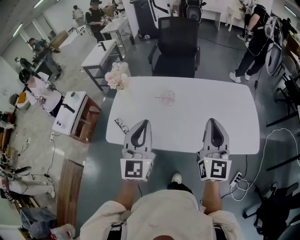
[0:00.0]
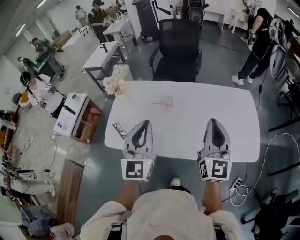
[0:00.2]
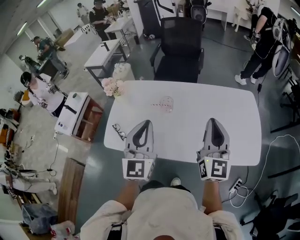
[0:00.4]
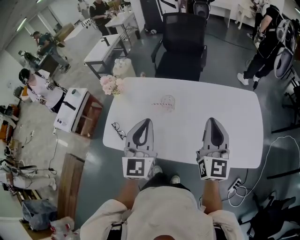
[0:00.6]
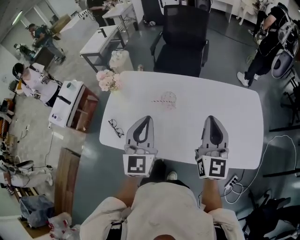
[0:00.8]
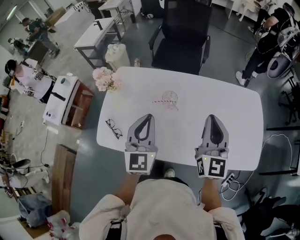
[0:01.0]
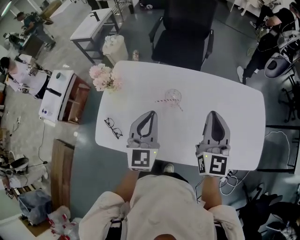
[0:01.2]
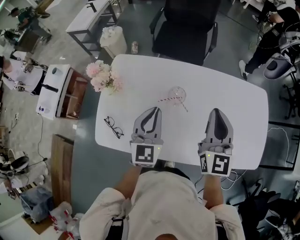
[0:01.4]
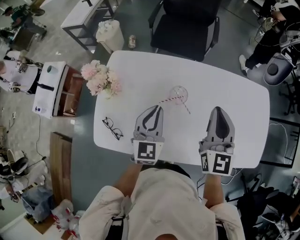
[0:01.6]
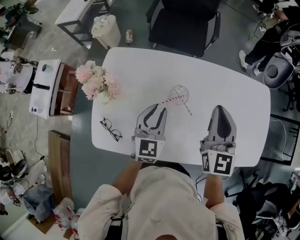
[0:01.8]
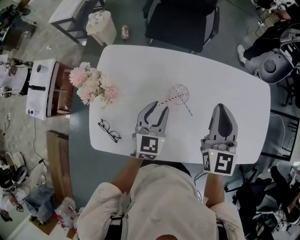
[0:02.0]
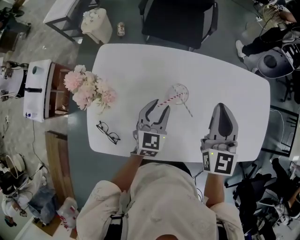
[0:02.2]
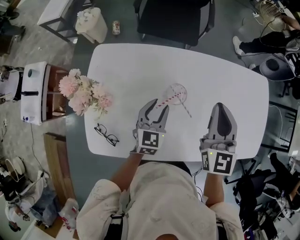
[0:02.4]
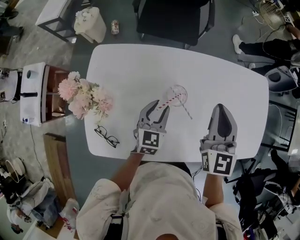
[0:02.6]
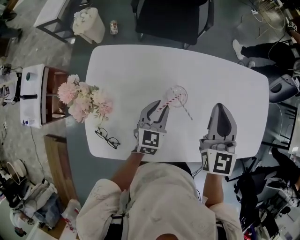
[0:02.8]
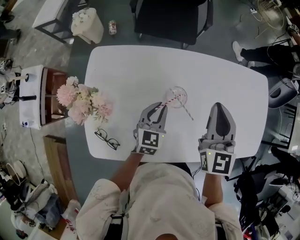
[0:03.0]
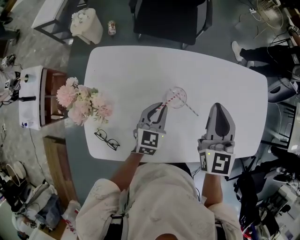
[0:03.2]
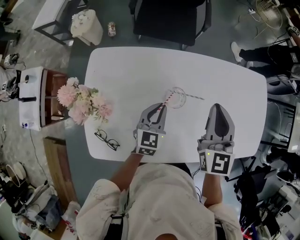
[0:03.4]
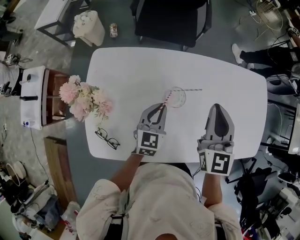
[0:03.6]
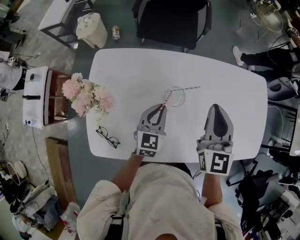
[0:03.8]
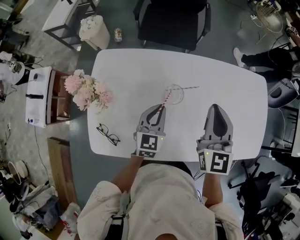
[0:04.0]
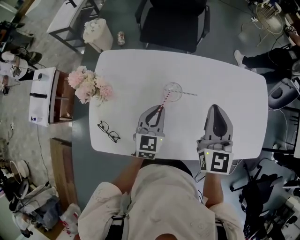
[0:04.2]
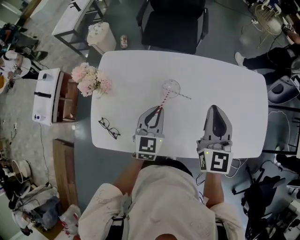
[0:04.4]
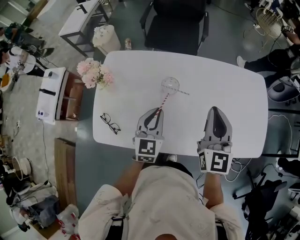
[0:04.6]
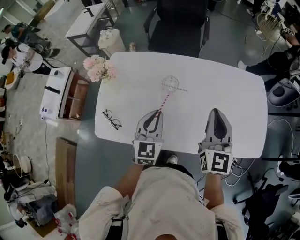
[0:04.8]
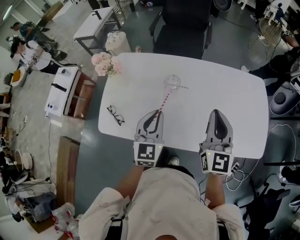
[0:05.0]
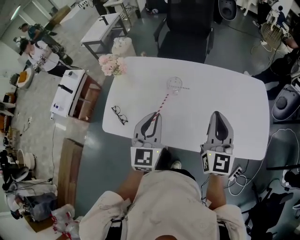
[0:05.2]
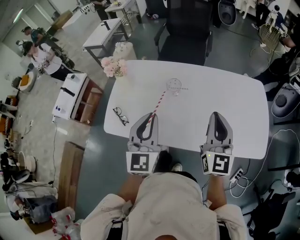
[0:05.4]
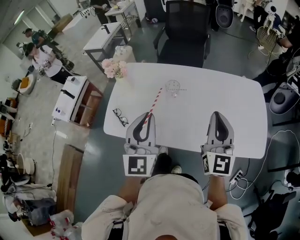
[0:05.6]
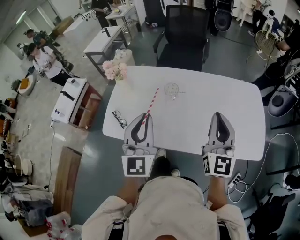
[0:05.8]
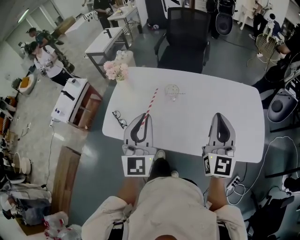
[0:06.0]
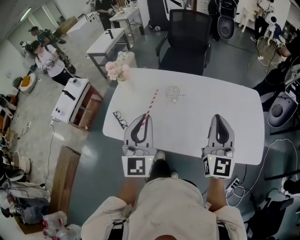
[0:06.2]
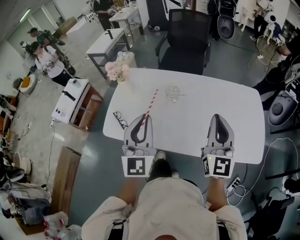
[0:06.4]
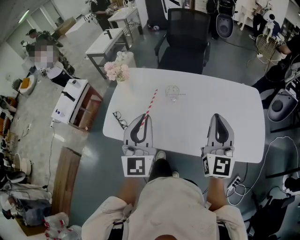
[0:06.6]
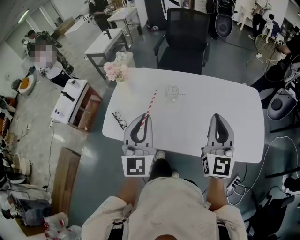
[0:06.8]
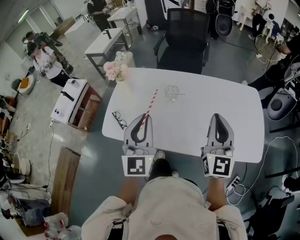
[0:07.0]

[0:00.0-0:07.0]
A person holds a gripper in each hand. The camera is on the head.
0:00.0 to 0:01.4: The left gripper moves forward and downward, approximately 30 cm. Meanwhile the right gripper goes roughly 25 cm forward.
0:01.4 to 0:02.8: The left gripper shifts approximately 20 cm downward and forward, changes its angle by approximately 20 degrees, and opens. Meanwhile the right gripper is displaced forward and downward by some 10 cm.
0:02.8 to 0:04.2: The right gripper heads backward, covering roughly 5 cm. The left gripper goes some 5 cm upward, and closes up.
0:04.2 to 0:05.6: The left gripper goes roughly 30 cm backward and upward, and turns by some 30 degrees. Meanwhile the right gripper moves backward and to the right, approximately 20 cm.
0:05.6 to 0:07.0: The grippers make only small movements.

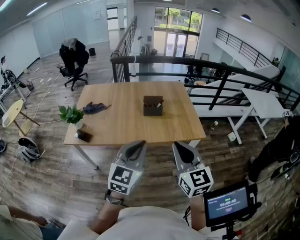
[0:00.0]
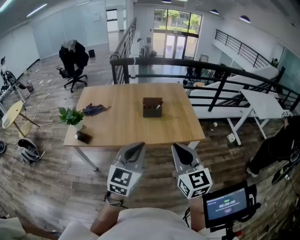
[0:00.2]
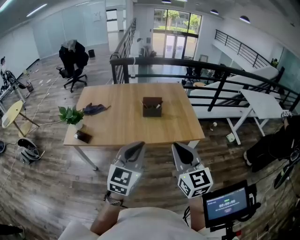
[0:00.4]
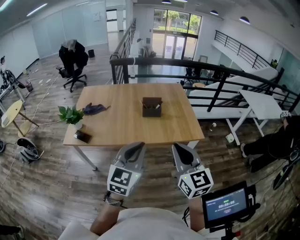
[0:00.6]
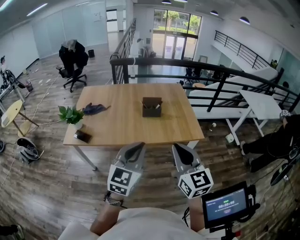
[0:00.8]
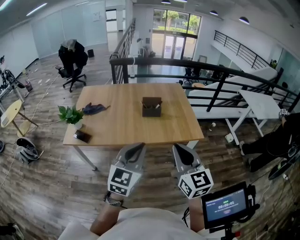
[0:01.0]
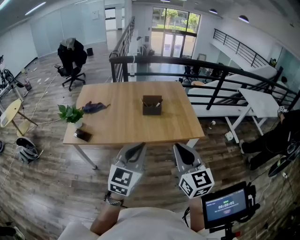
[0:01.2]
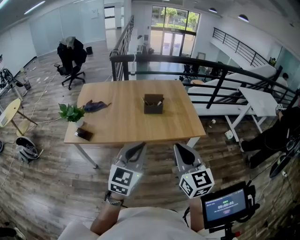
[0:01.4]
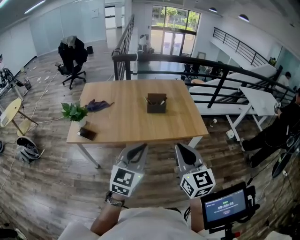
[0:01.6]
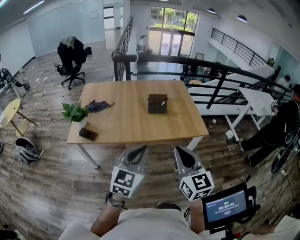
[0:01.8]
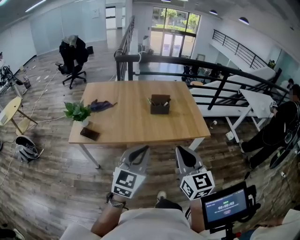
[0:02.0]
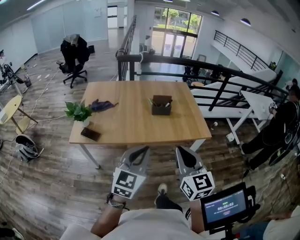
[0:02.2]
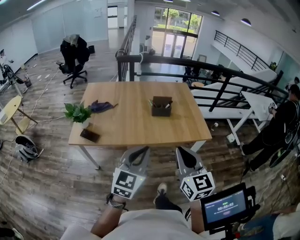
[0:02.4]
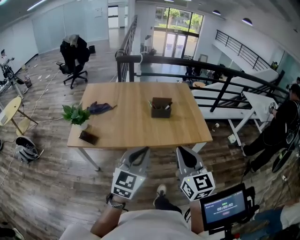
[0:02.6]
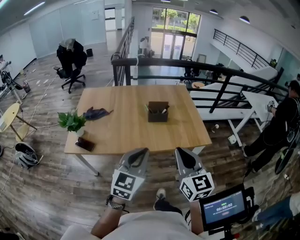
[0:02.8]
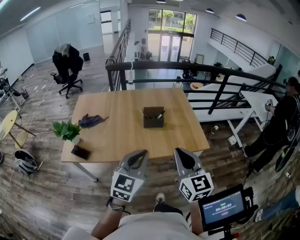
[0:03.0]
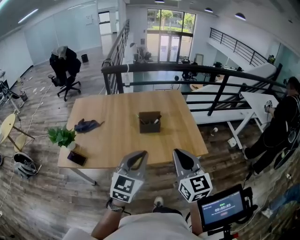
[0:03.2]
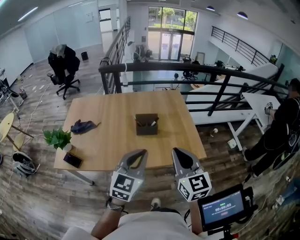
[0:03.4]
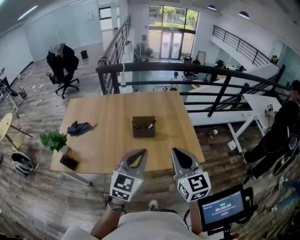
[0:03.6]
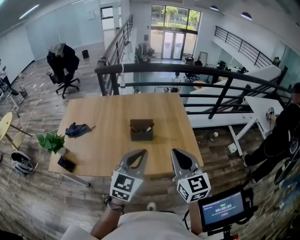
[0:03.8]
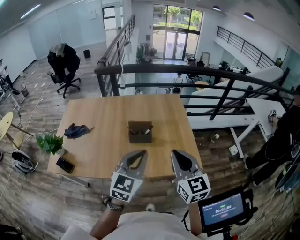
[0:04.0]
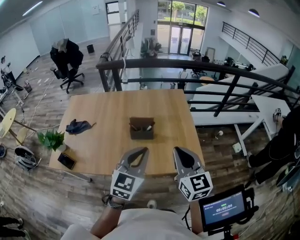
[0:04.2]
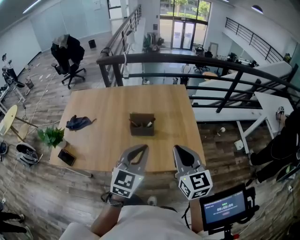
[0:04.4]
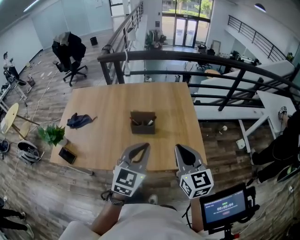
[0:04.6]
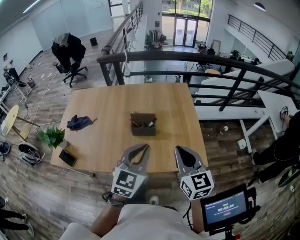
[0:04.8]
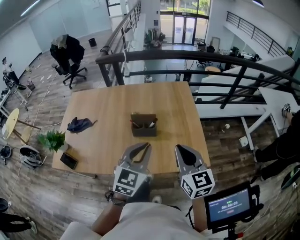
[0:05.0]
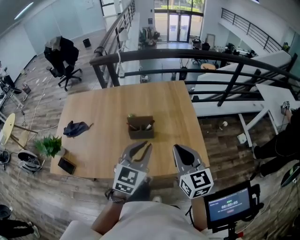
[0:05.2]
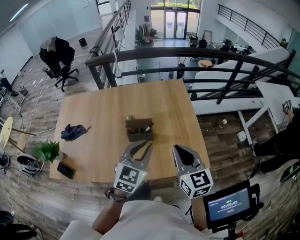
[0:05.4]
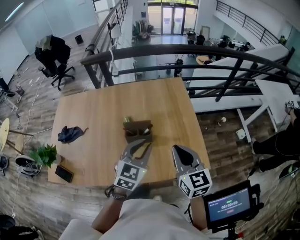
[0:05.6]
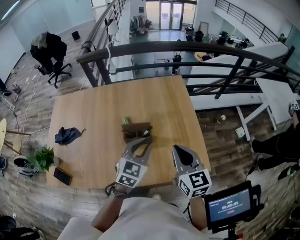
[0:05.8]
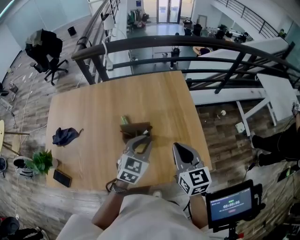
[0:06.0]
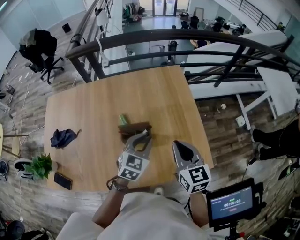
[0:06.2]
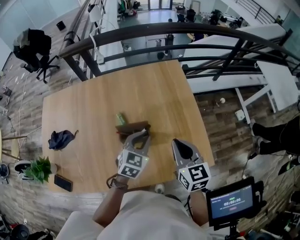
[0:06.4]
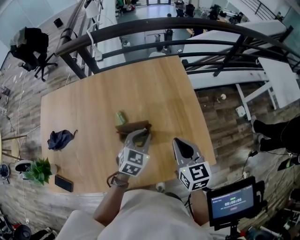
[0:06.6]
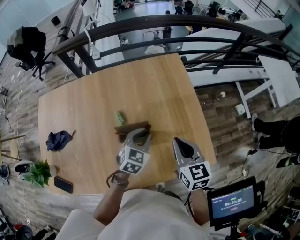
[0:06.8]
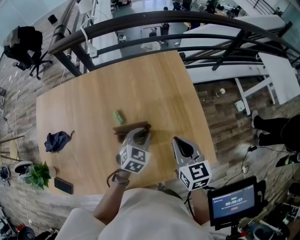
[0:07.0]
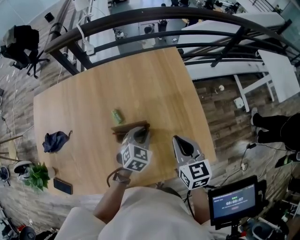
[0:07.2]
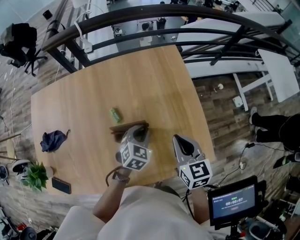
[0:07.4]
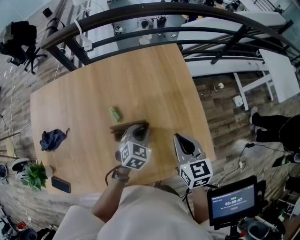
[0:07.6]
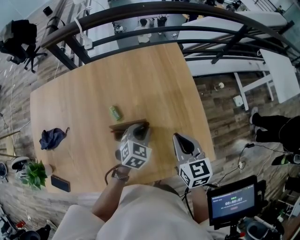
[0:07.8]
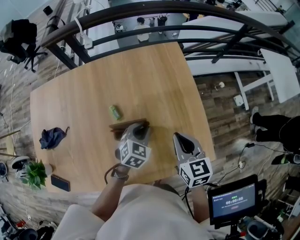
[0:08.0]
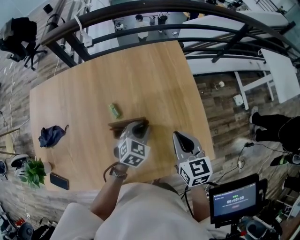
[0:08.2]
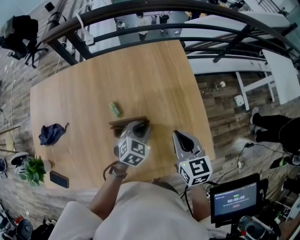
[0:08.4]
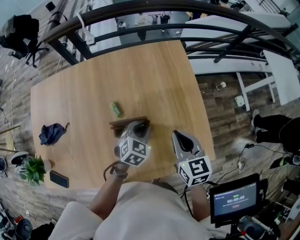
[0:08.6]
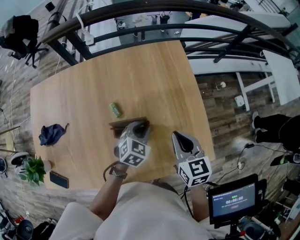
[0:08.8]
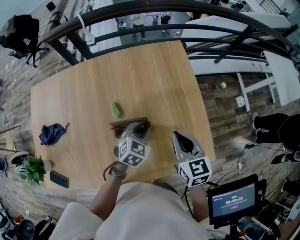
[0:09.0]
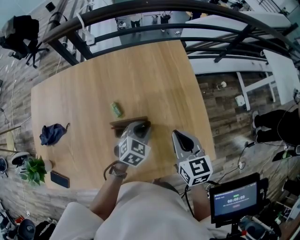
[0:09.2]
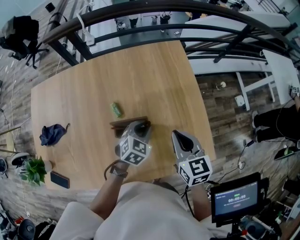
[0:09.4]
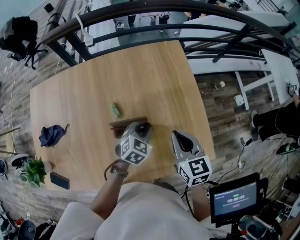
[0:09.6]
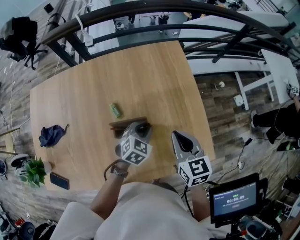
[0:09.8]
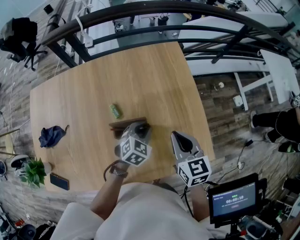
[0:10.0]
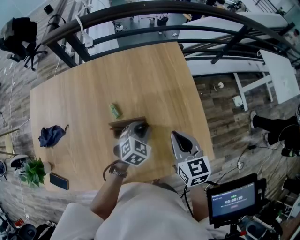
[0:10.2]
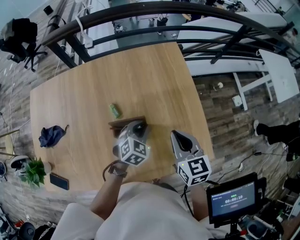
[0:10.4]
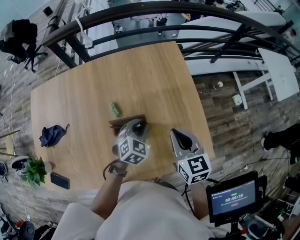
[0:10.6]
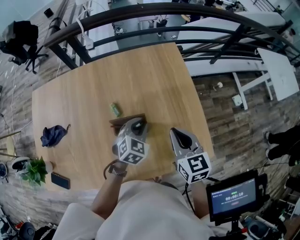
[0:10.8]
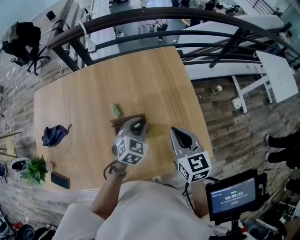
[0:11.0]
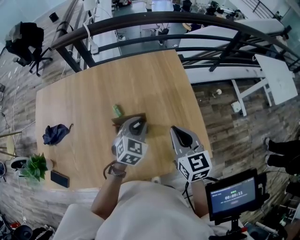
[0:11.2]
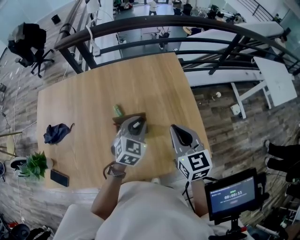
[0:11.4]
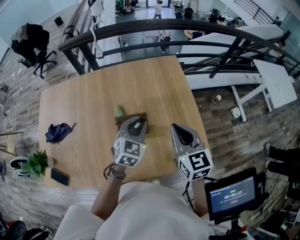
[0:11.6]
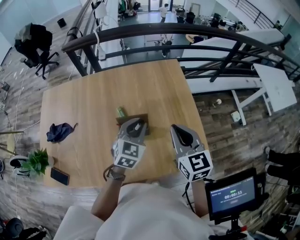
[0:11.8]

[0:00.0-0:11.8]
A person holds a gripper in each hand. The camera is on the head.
0:00.0 to 0:01.4: There are only small adjustments of the grippers.
0:01.4 to 0:03.0: The grippers both shift forward by some 10 cm.
0:03.0 to 0:04.4: Both grippers move forward and to the right, roughly 15 cm.
0:04.4 to 0:06.0: Both grippers move forward and downward, roughly 20 cm.
0:06.0 to 0:07.4: The right gripper goes about 5 cm downward, while the left gripper travels downward and forward by roughly 15 cm.
0:07.4 to 0:08.8: Neither gripper changes place.
0:08.8 to 0:10.4: The grippers make only small movements.
0:10.4 to 0:11.8: Both grippers travel together upward, roughly 10 cm. The left gripper rotates roughly 20 degrees.

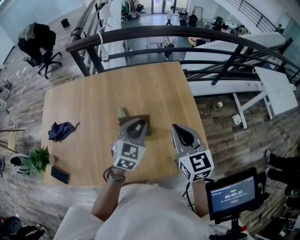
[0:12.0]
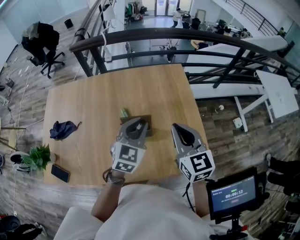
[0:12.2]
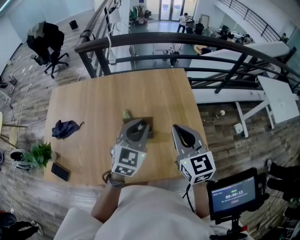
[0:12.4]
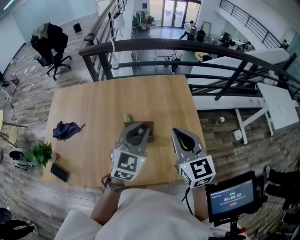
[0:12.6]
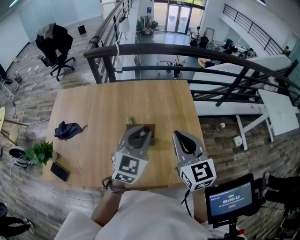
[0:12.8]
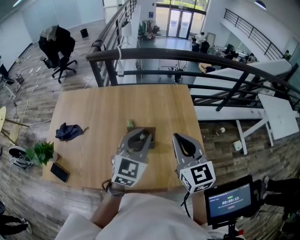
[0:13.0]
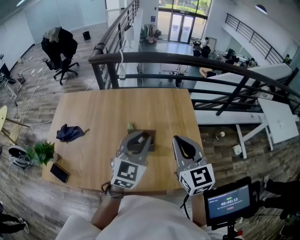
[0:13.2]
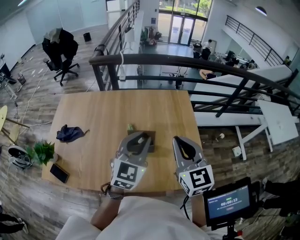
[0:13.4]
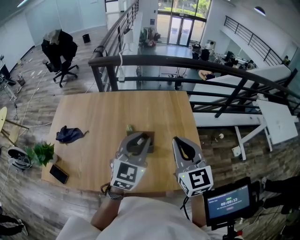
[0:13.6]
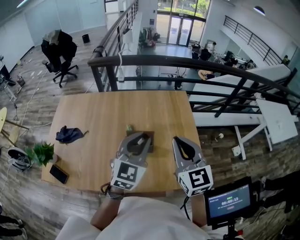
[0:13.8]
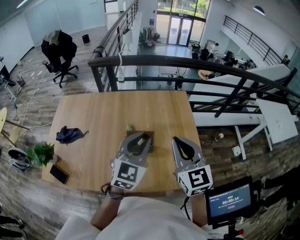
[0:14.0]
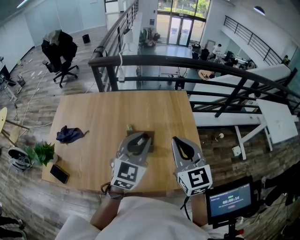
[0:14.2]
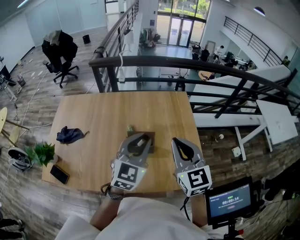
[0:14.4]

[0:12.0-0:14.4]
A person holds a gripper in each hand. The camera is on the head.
0:12.0 to 0:13.2: The left gripper moves upward, roughly 10 cm; the right gripper heads upward, covering about 5 cm.
0:13.2 to 0:14.4: Both grippers stay put.

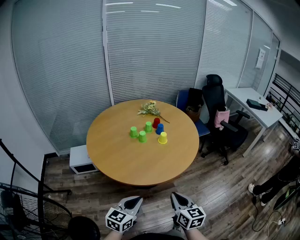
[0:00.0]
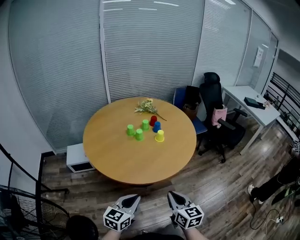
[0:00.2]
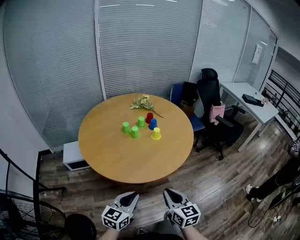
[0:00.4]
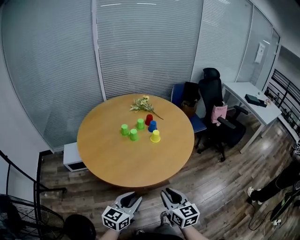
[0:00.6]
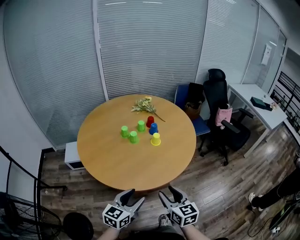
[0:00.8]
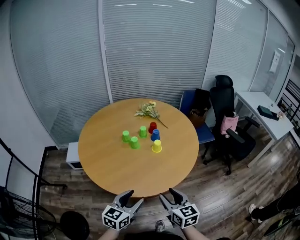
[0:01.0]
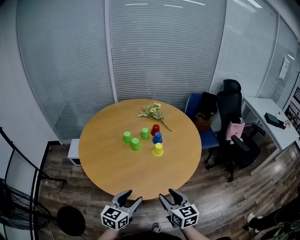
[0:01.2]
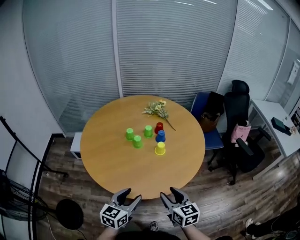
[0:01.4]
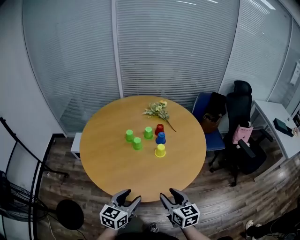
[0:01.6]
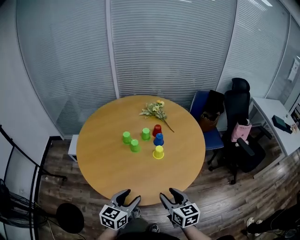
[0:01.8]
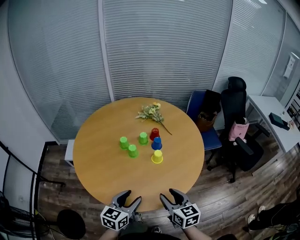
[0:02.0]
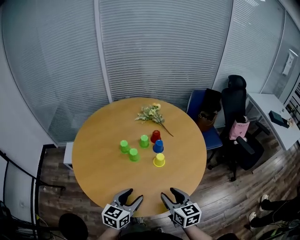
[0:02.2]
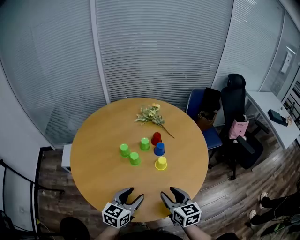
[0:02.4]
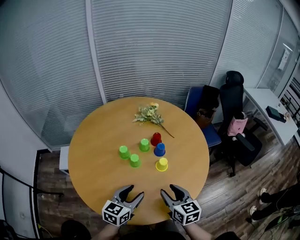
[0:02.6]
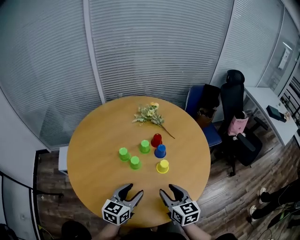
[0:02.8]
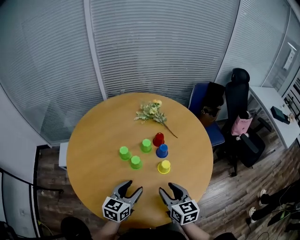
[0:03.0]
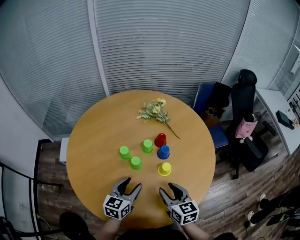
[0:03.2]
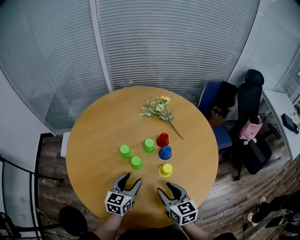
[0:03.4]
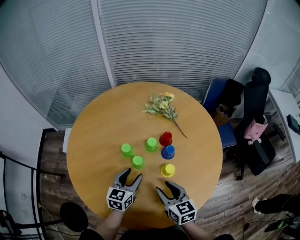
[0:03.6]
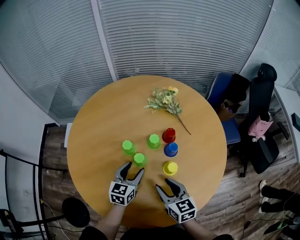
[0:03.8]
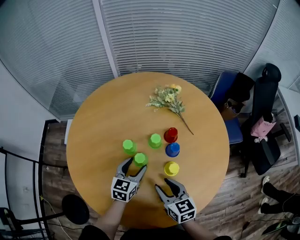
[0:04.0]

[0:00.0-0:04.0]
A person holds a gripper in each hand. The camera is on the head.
0:00.0 to 0:01.4: Both grippers travel together forward and to the right, about 20 cm. The right gripper changes its angle by roughly 20 degrees, and opens up. Meanwhile the left gripper opens.
0:01.4 to 0:02.6: The grippers both shift forward by about 15 cm.
0:02.6 to 0:04.0: The left gripper travels forward and downward by approximately 20 cm, while the right gripper heads forward and downward, covering approximately 10 cm.
